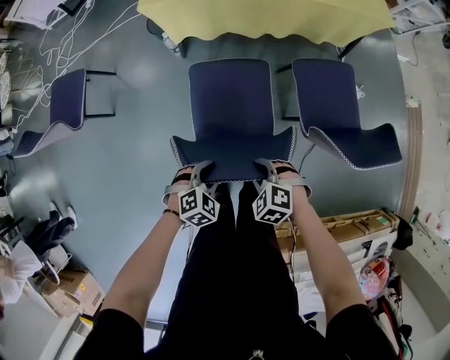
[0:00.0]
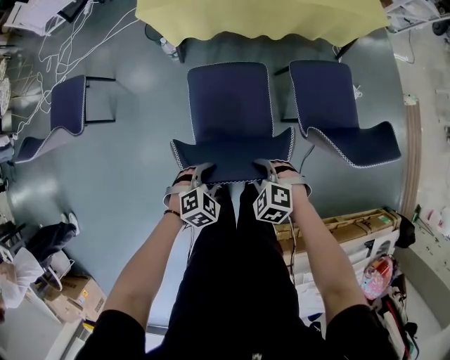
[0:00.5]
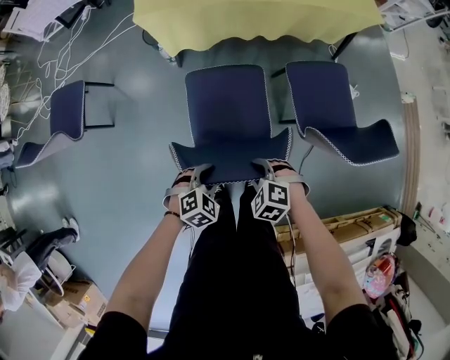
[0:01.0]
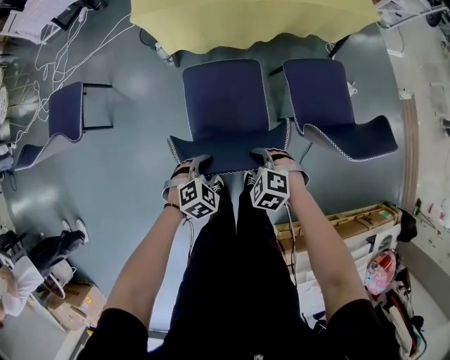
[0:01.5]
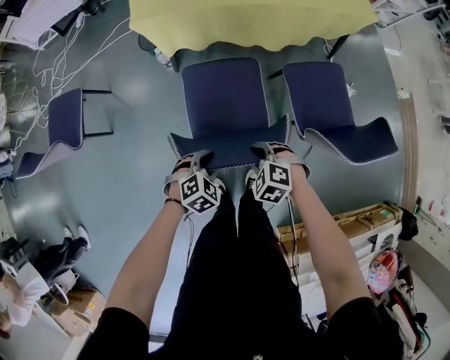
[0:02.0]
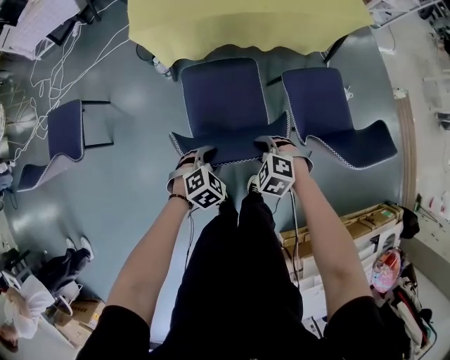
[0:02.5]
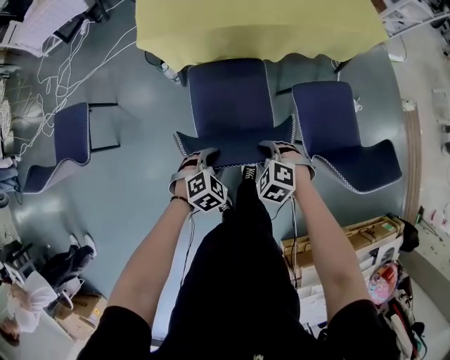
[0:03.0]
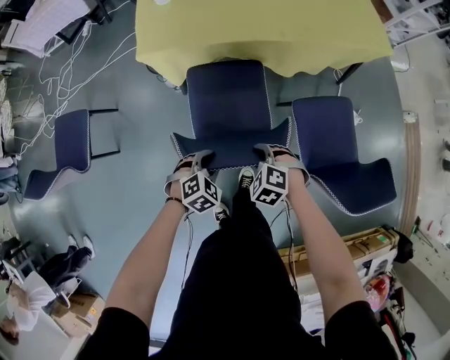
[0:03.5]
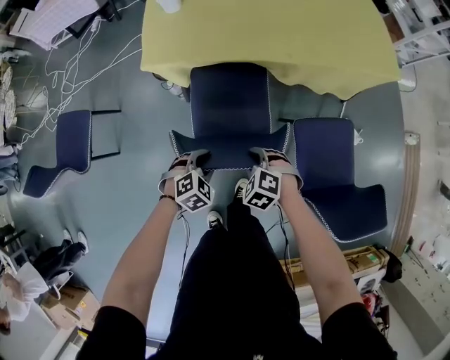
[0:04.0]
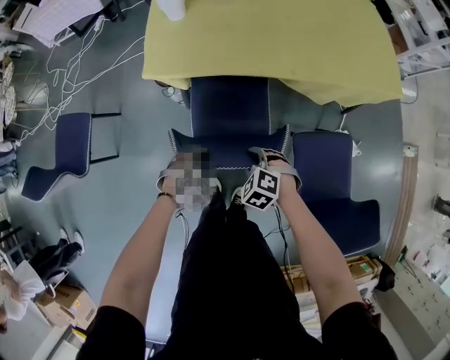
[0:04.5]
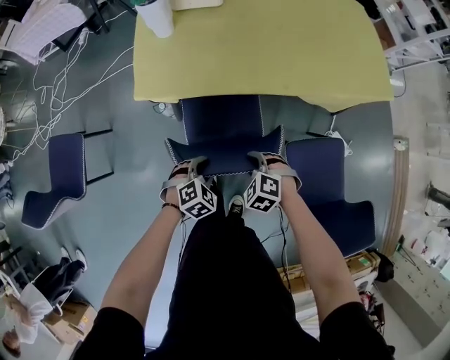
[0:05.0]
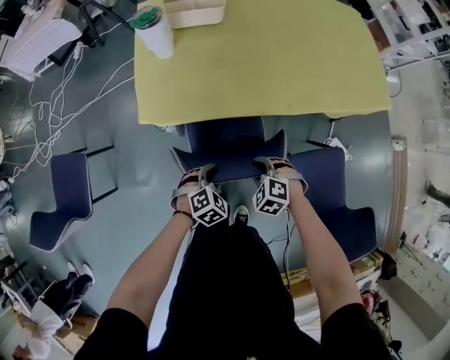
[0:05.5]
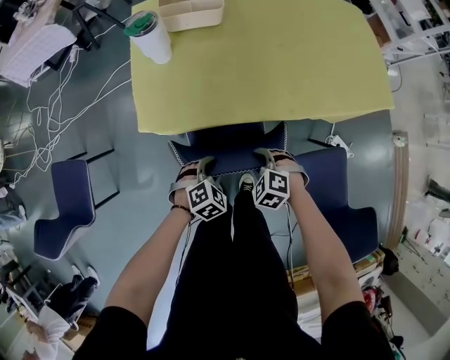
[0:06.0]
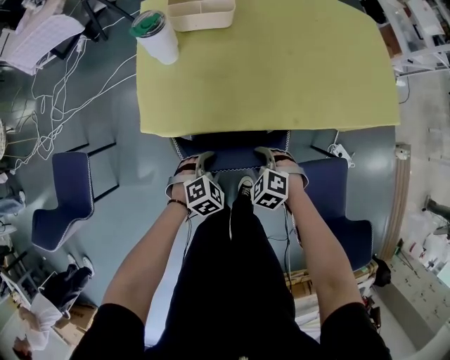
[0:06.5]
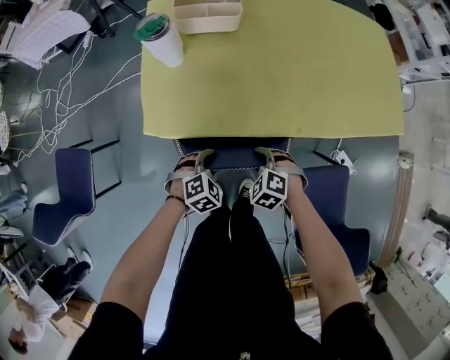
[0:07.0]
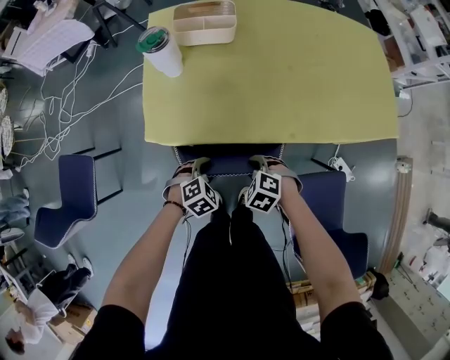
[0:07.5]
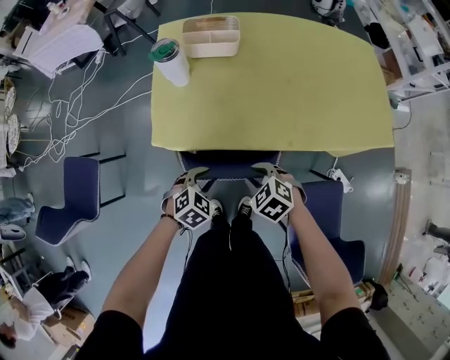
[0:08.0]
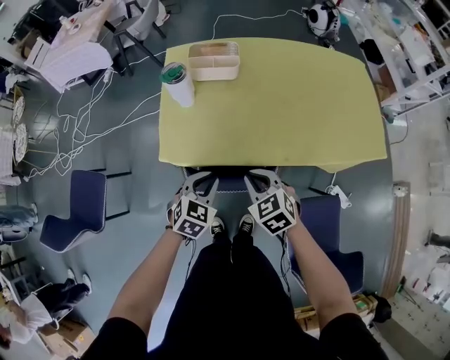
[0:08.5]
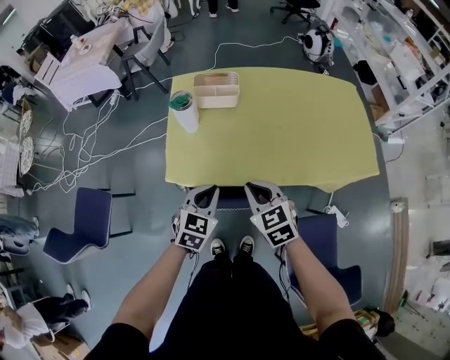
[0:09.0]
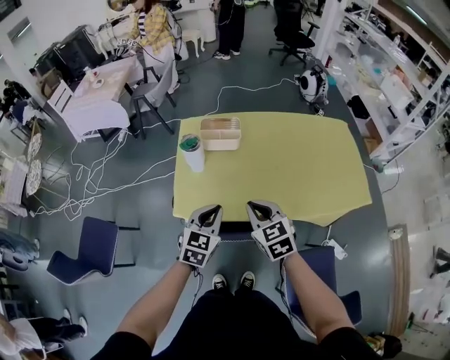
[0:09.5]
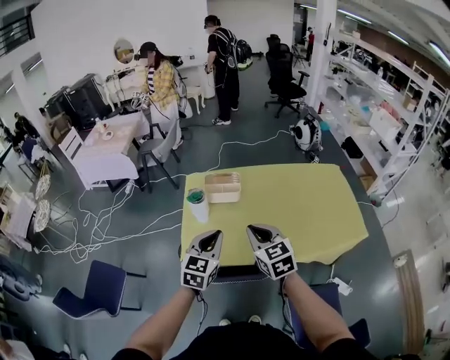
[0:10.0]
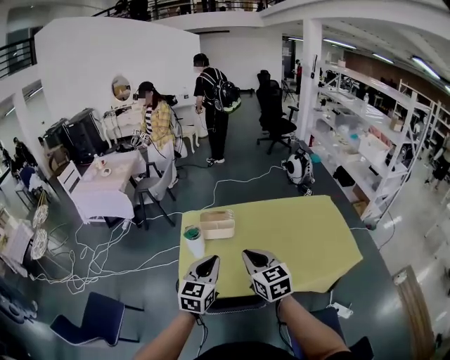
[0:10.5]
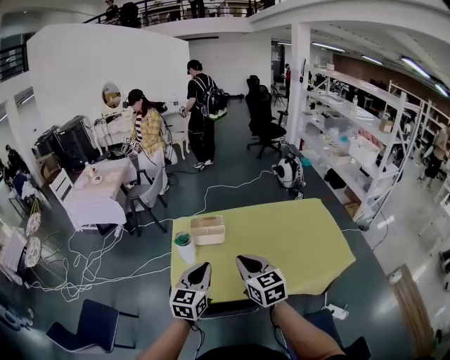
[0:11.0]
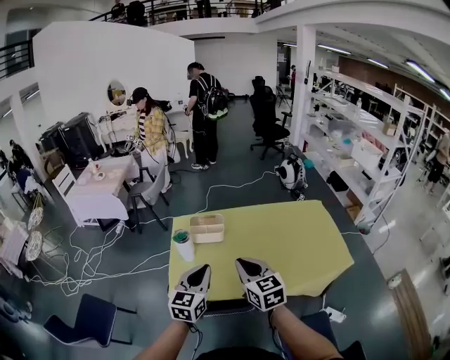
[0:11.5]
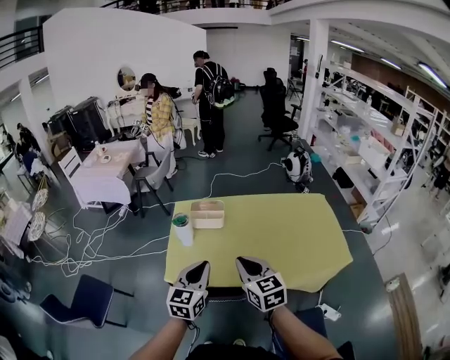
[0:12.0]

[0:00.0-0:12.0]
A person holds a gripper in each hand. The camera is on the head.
0:00.0 to 0:02.0: Both grippers travel together forward, about 5 cm.
0:02.0 to 0:04.0: Both grippers travel together forward, some 25 cm.
0:04.0 to 0:06.0: Both grippers move forward, approximately 20 cm.
0:06.0 to 0:08.0: Both grippers travel together upward, about 10 cm.
0:08.0 to 0:10.0: Both grippers move upward, about 35 cm. The left gripper tips its fingers upward by roughly 40 degrees, and closes its fingers; the right gripper tilts its fingers some 40 degrees upward, and closes its fingers.
0:10.0 to 0:12.0: The left gripper travels backward by some 5 cm, while the right gripper moves backward and to the right, approximately 10 cm.

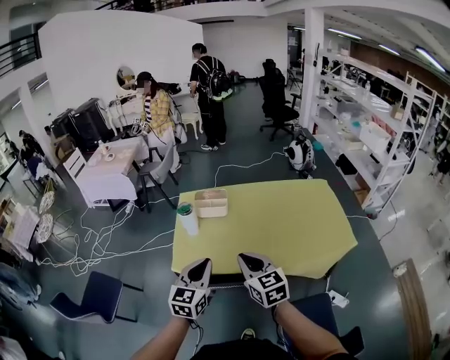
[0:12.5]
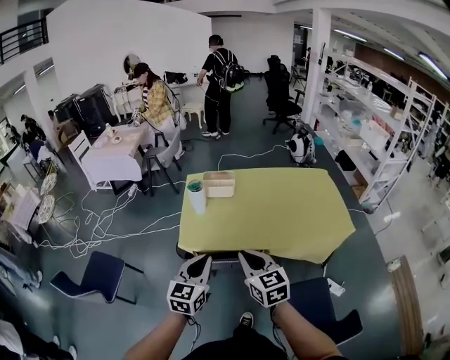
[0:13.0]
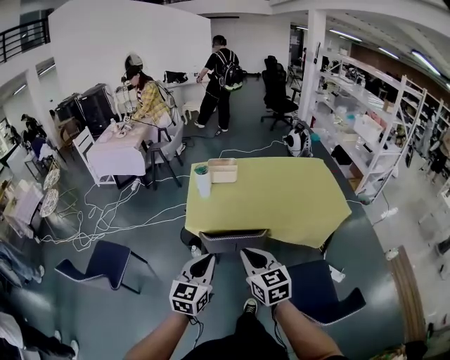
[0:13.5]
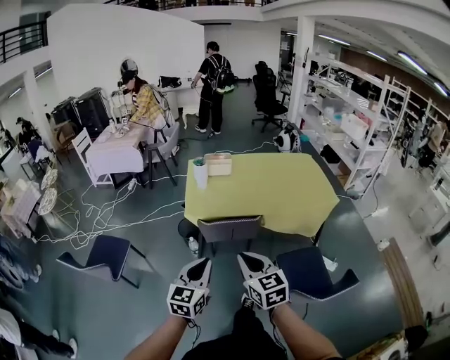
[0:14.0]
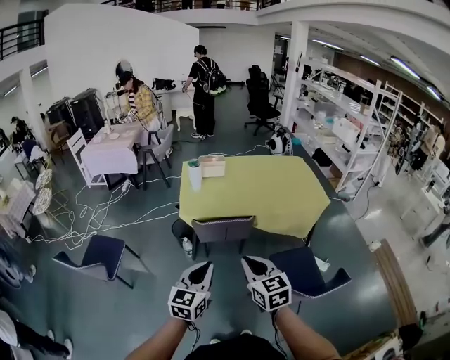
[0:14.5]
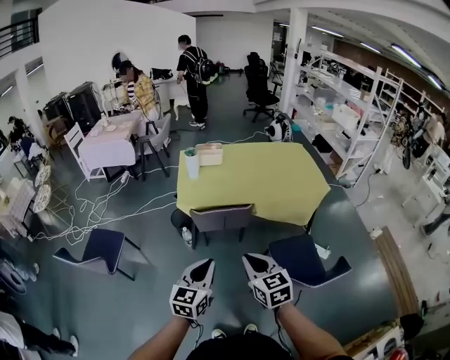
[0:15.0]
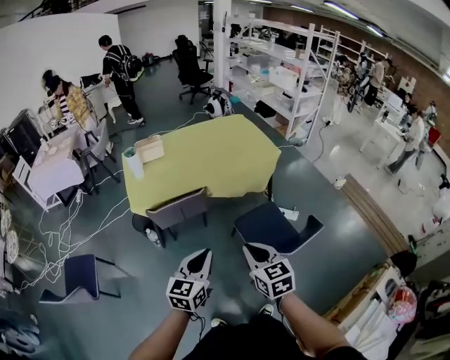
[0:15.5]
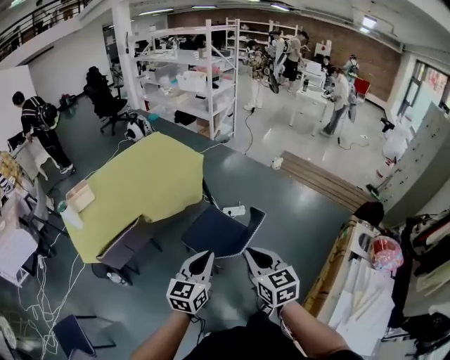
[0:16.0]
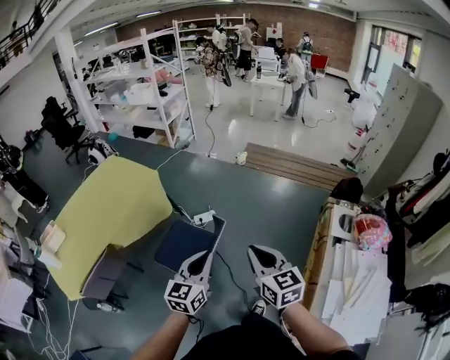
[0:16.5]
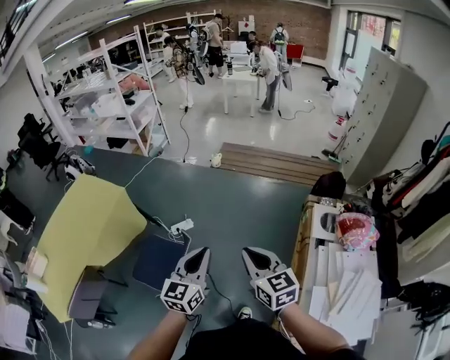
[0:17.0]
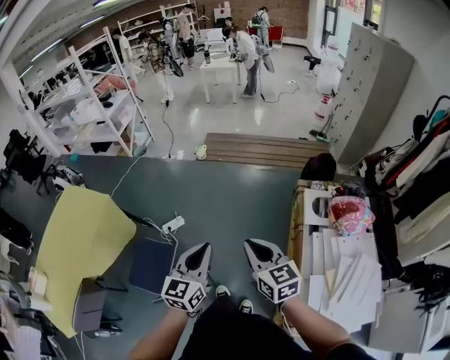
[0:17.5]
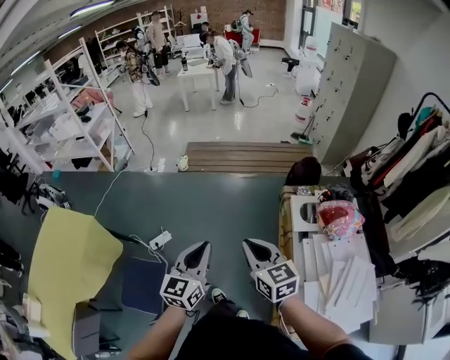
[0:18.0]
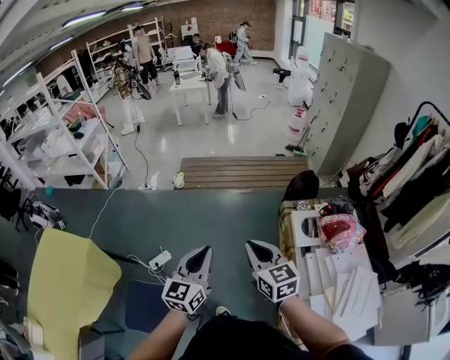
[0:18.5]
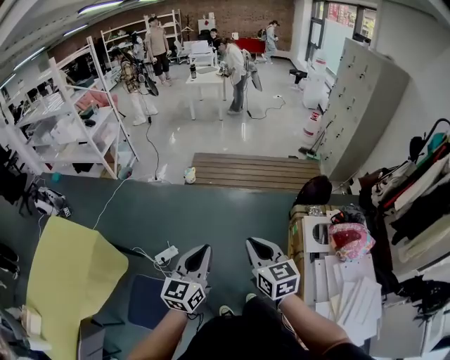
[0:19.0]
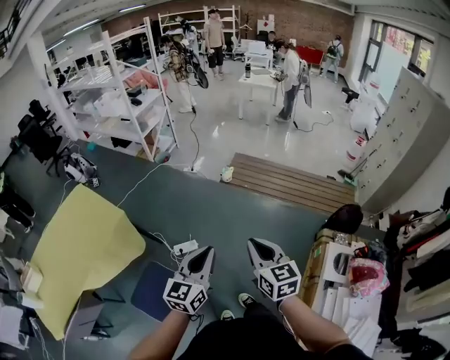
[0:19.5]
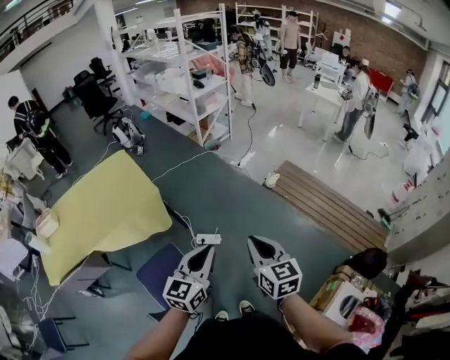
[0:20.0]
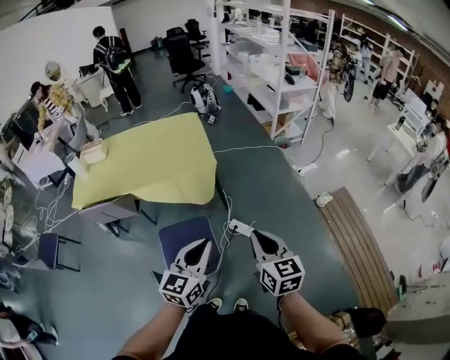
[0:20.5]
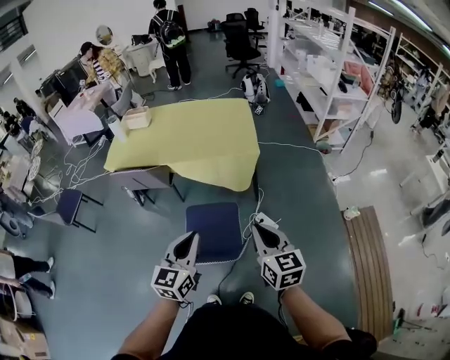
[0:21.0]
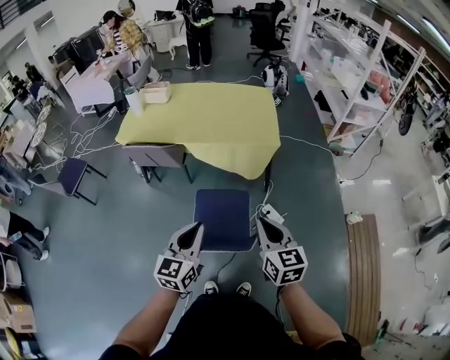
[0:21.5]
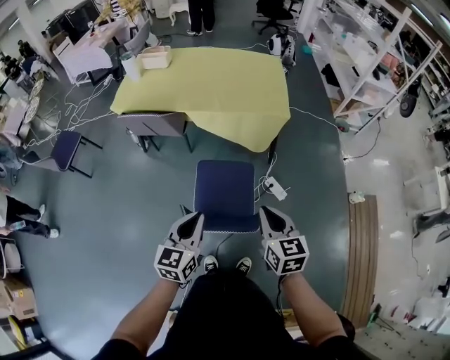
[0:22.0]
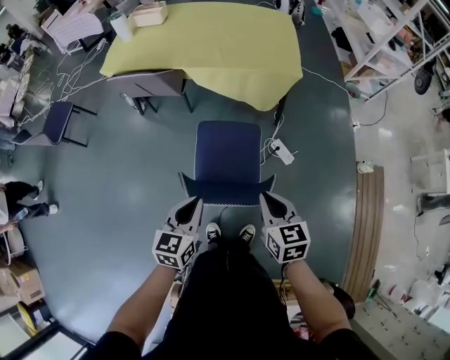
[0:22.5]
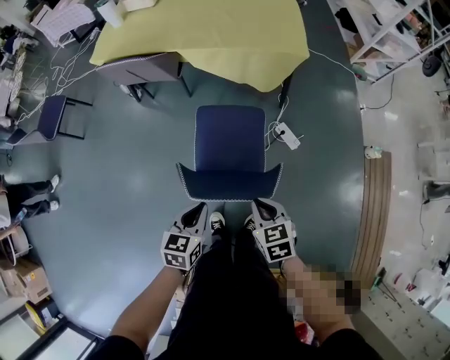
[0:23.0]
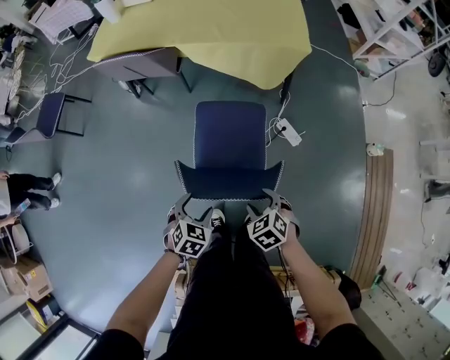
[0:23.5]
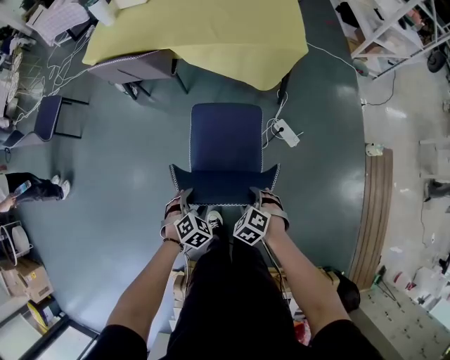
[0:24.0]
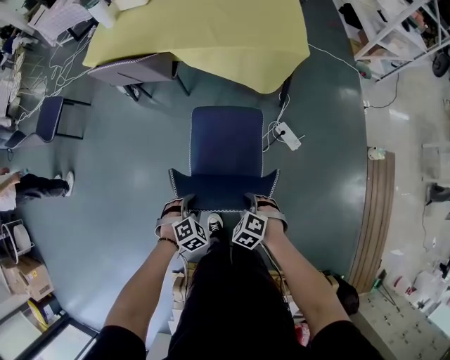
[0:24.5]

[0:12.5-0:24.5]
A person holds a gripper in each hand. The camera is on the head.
0:12.5 to 0:14.5: Both grippers are carried backward, about 50 cm.
0:14.5 to 0:16.5: The two grippers travel together, about 60 cm. The left gripper rotates approximately 60 degrees. The right gripper swivels roughly 60 degrees.
0:16.5 to 0:18.5: The grippers both shift forward and to the right by some 40 cm. The left gripper rotates some 20 degrees, while the right gripper turns by about 20 degrees.
0:18.5 to 0:20.5: The left gripper changes place by about 25 cm, and turns by approximately 70 degrees. The right gripper moves approximately 35 cm, and rotates approximately 60 degrees.
0:20.5 to 0:22.5: Both grippers move to the left and downward, about 30 cm. The left gripper changes its angle by about 30 degrees. Meanwhile the right gripper changes its angle by about 30 degrees.
0:22.5 to 0:24.5: The two grippers go about 25 cm downward. The left gripper tilts its fingers about 40 degrees downward, and opens up; the right gripper angles its fingers downward, by roughly 40 degrees, and opens up.

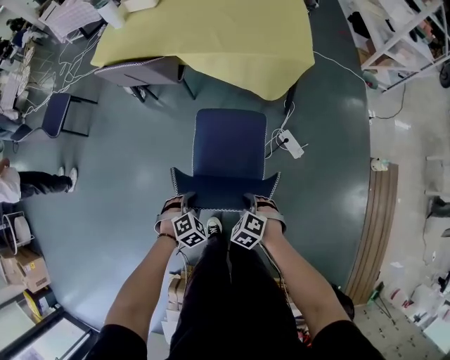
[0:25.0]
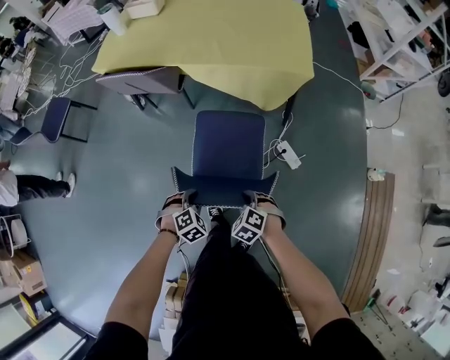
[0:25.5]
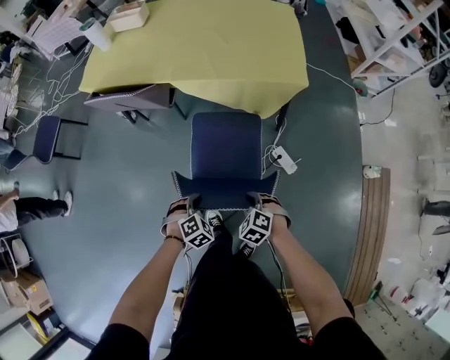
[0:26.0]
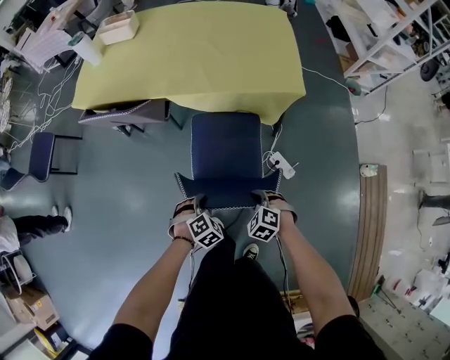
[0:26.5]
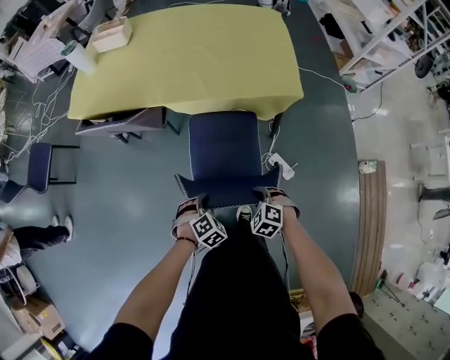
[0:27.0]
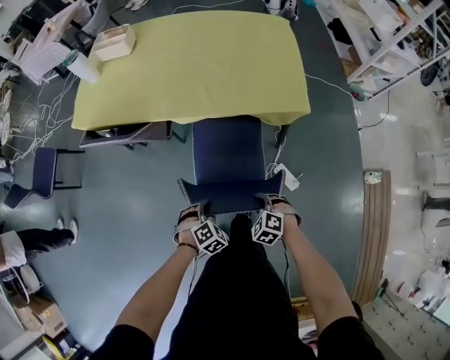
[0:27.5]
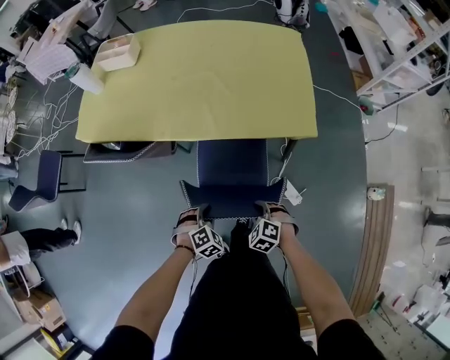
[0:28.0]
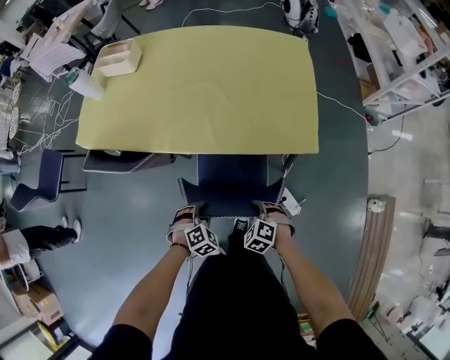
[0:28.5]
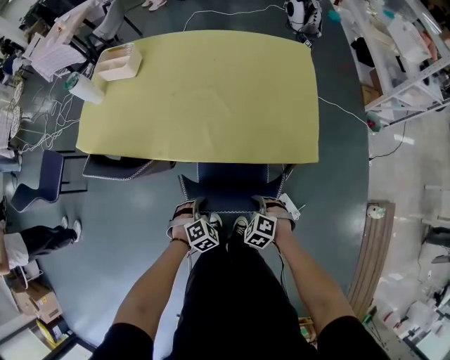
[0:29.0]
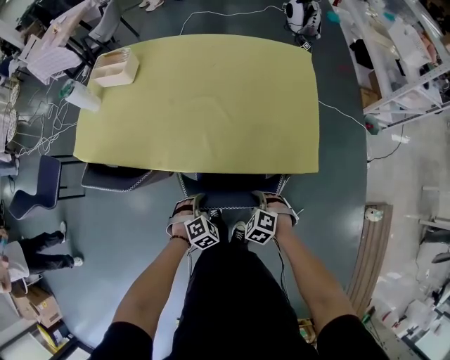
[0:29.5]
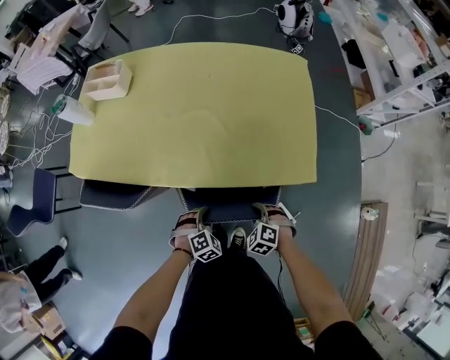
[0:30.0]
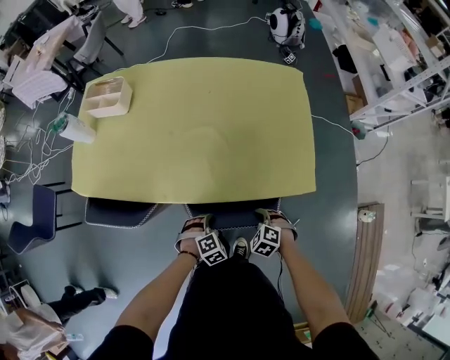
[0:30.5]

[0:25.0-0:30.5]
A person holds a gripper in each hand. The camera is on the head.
0:25.0 to 0:27.0: The grippers both shift forward by approximately 20 cm.
0:27.0 to 0:28.5: Both grippers move forward, roughly 20 cm.
0:28.5 to 0:30.5: Both grippers move forward, about 15 cm.
